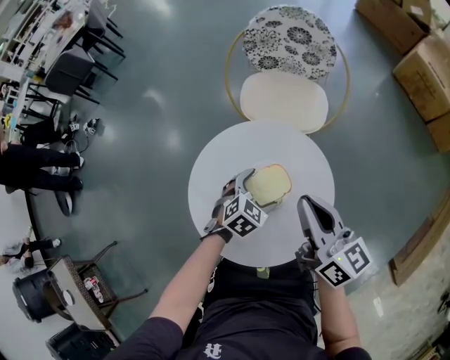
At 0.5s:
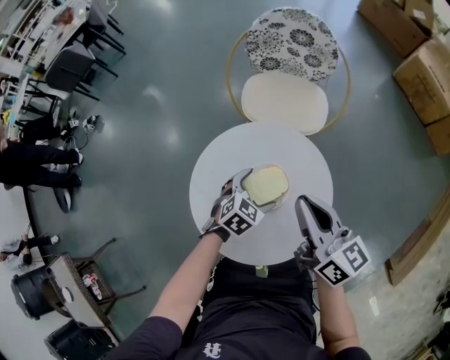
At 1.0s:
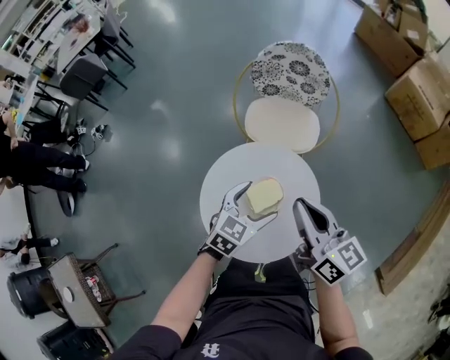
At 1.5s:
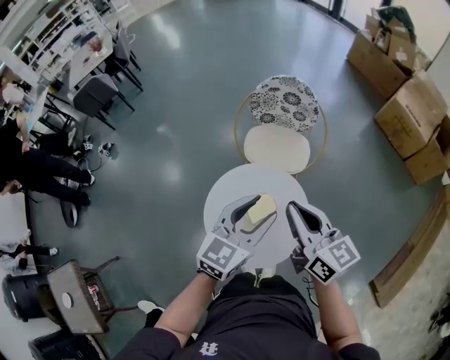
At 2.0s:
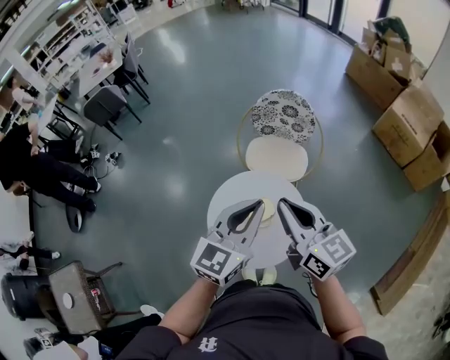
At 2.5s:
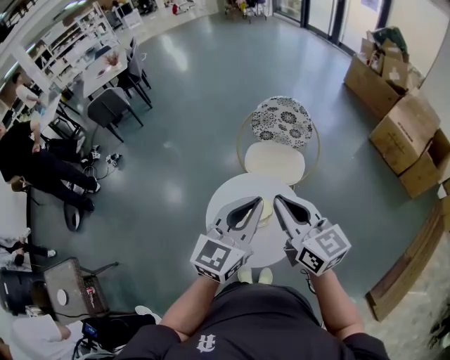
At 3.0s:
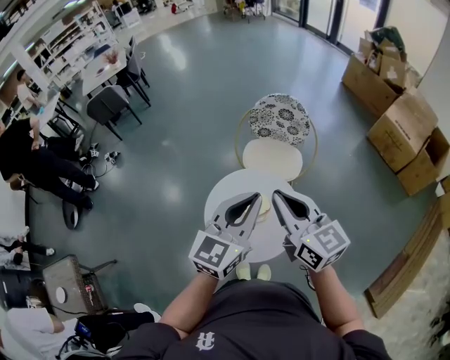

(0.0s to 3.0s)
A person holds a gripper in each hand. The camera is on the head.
0.0s - 1.5s: The right gripper heads upward, covering some 20 cm. Meanwhile the left gripper heads upward, covering approximately 40 cm, angles its fingers upward, by about 40 degrees, and closes its fingers.
1.5s - 3.0s: Both grippers move upward and backward, approximately 10 cm. The left gripper closes.

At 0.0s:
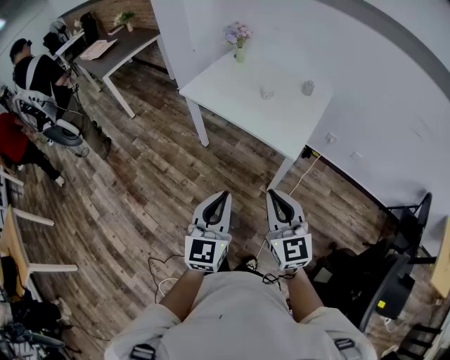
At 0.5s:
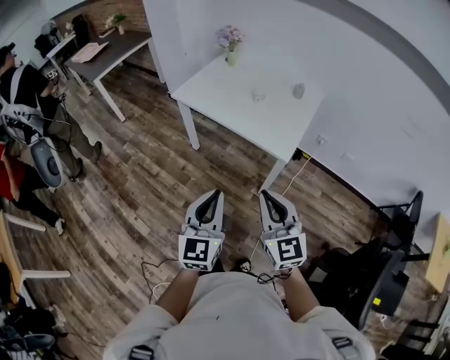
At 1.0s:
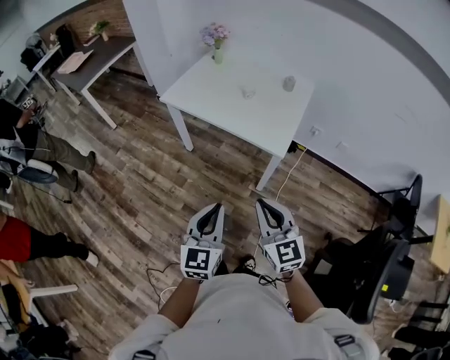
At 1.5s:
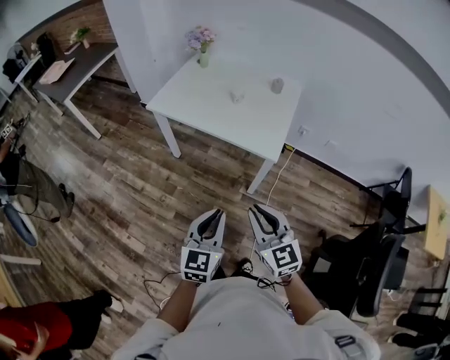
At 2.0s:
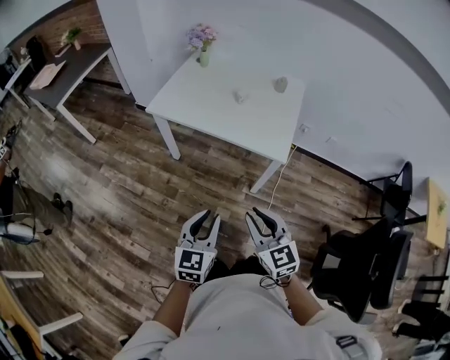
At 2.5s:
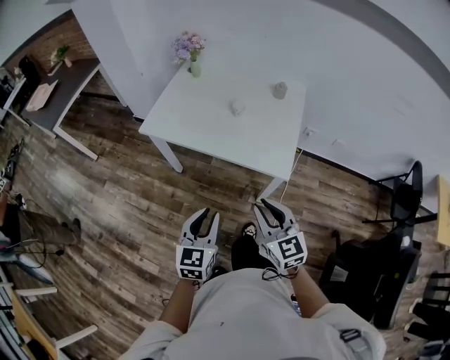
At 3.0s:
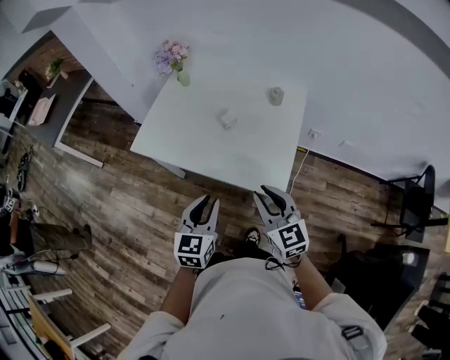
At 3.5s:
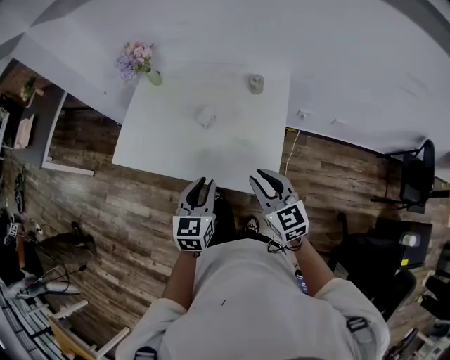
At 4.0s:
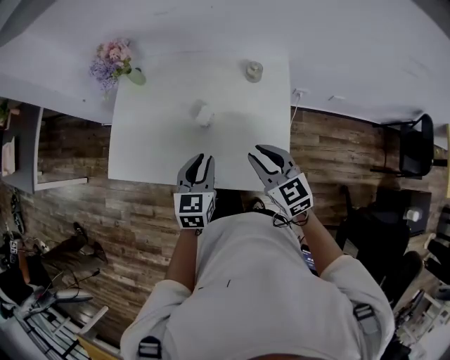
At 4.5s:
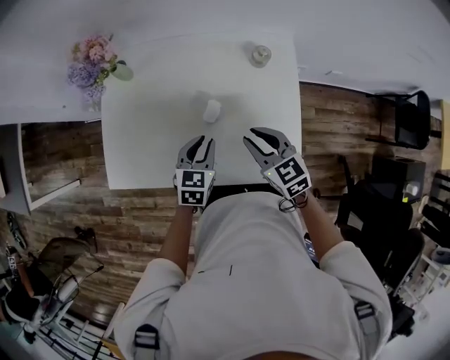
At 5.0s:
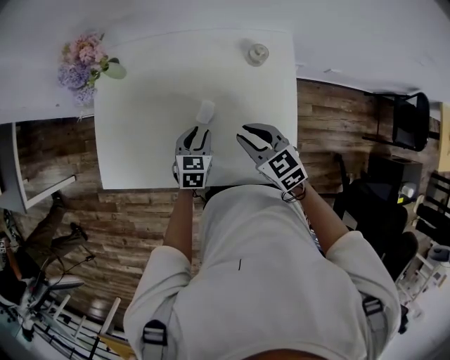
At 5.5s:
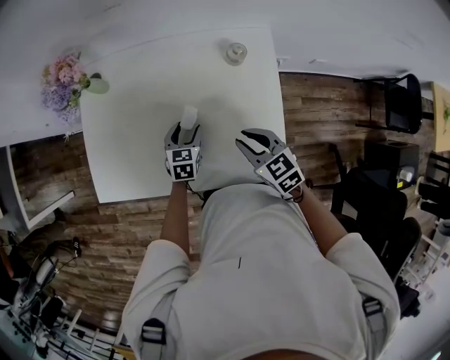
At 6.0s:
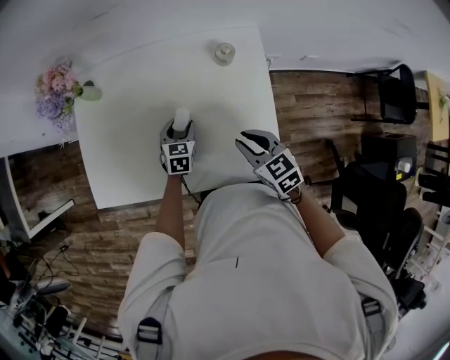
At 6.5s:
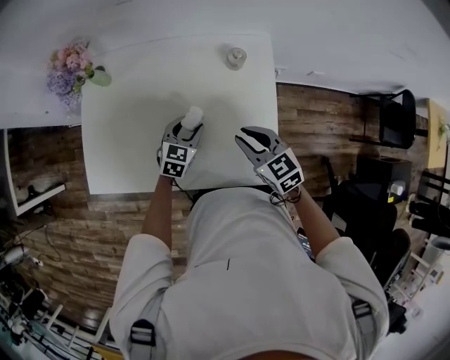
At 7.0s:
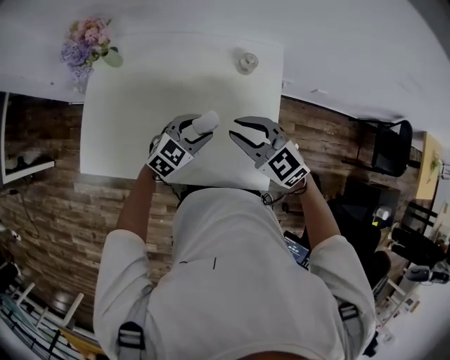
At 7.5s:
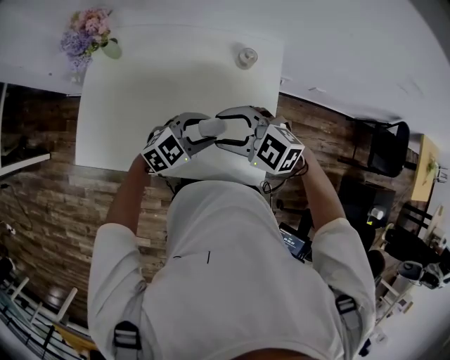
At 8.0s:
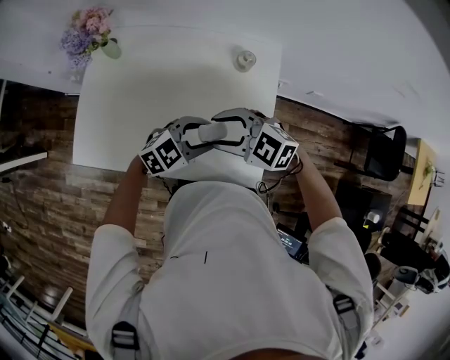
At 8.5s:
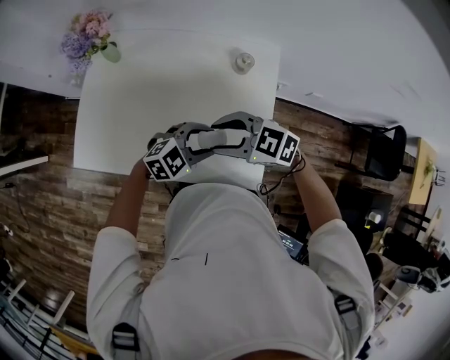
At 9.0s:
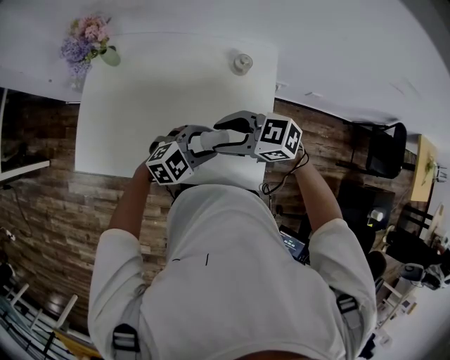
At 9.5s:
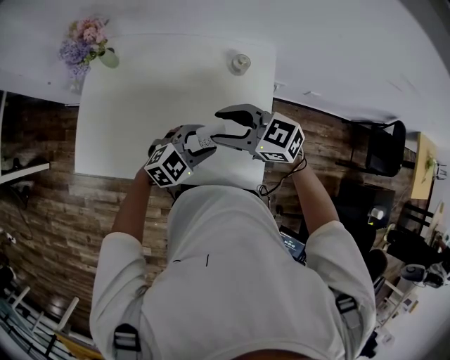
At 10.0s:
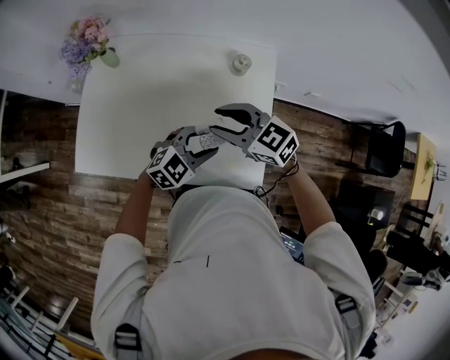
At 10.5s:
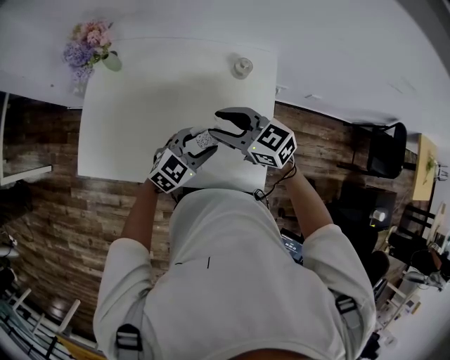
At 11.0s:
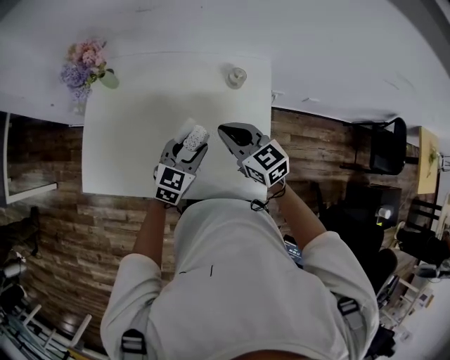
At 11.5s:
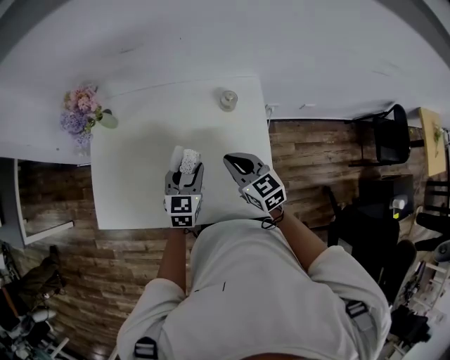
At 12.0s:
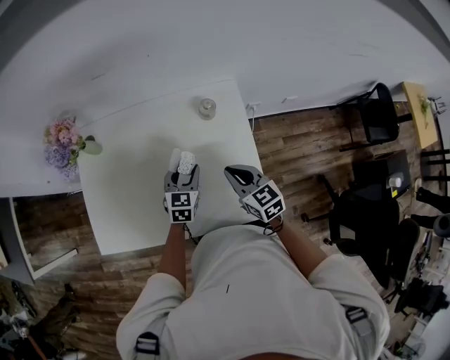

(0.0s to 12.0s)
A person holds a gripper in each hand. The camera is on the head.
0.0s - 2.0s: The left gripper moves to the left, downward and forward, approximately 15 cm, and turns by about 20 degrees; the right gripper goes some 15 cm to the left and downward.
2.0s - 4.0s: Both grippers are carried forward, some 50 cm.
4.0s - 6.0s: The right gripper heads downward and forward, covering about 10 cm; the left gripper heads downward and forward, covering some 25 cm, and opens.
6.0s - 8.0s: The left gripper goes about 15 cm upward, and turns by some 50 degrees. The right gripper moves some 10 cm, rotates roughly 60 degrees, and opens its fingers.
8.0s - 10.0s: The right gripper turns by some 20 degrees.
10.0s - 12.0s: The right gripper changes place by some 10 cm, changes its angle by about 40 degrees, and closes its fingers, while the left gripper changes place by some 15 cm, and turns by about 40 degrees.

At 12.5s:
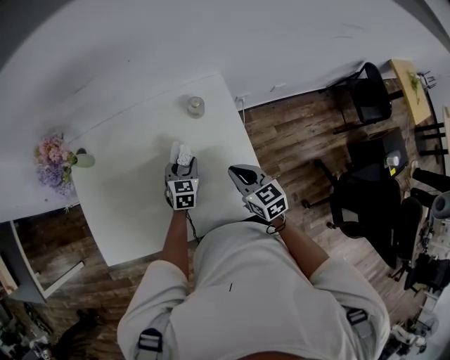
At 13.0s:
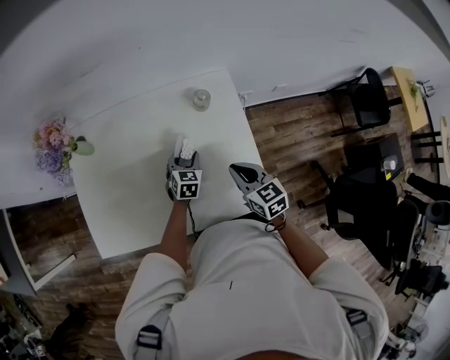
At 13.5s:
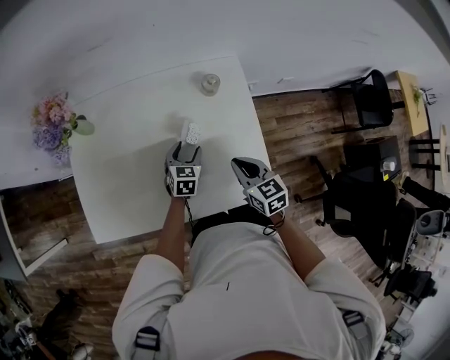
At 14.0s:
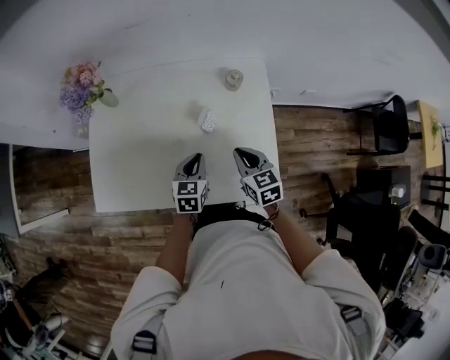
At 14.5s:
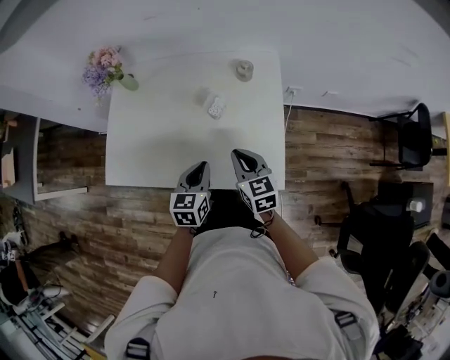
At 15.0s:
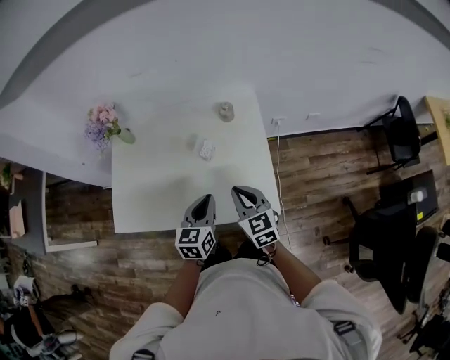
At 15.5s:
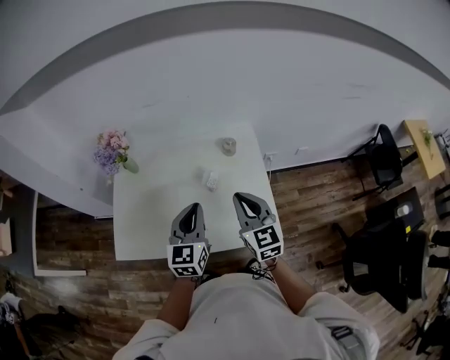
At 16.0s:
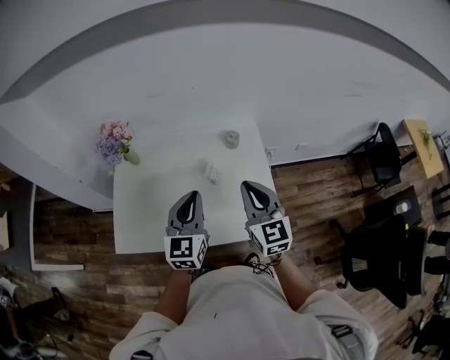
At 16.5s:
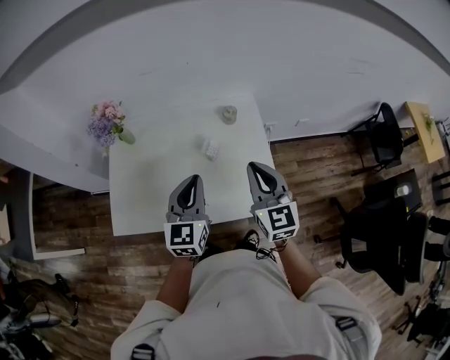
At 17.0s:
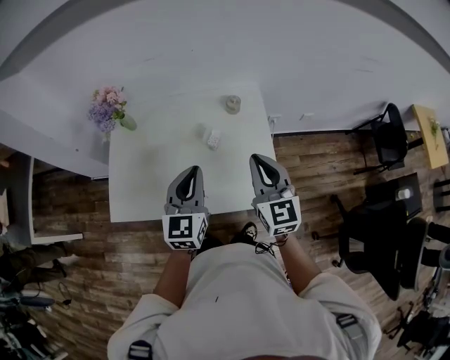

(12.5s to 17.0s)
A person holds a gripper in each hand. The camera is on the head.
12.5s - 14.5s: The right gripper moves backward and to the left, some 10 cm; the left gripper travels backward and upward by some 25 cm, swivels some 20 degrees, and closes.
14.5s - 17.0s: Both grippers travel together upward, approximately 20 cm. The left gripper turns by roughly 30 degrees. Meanwhile the right gripper rotates about 30 degrees.

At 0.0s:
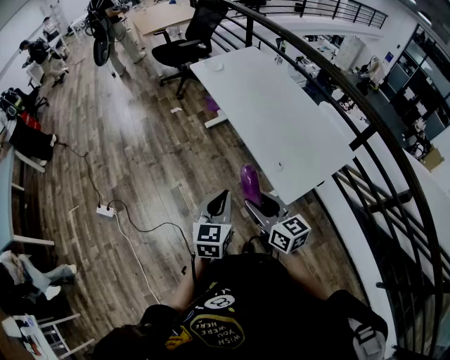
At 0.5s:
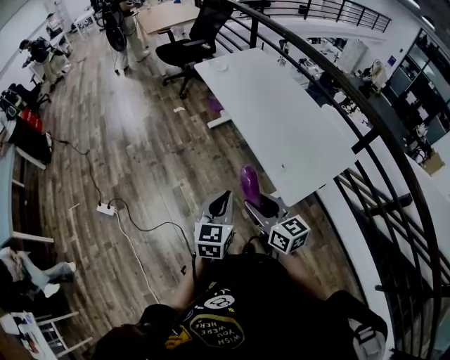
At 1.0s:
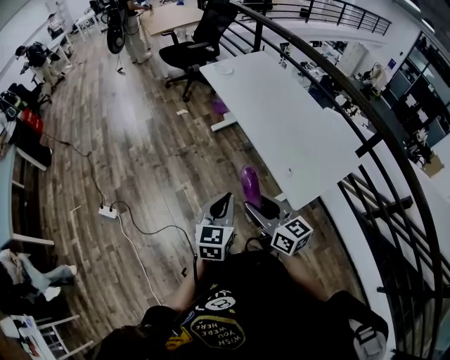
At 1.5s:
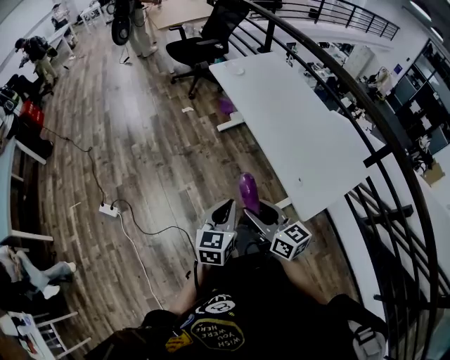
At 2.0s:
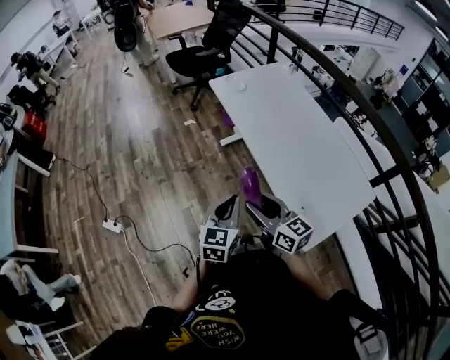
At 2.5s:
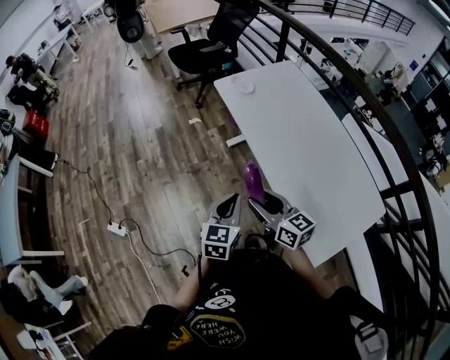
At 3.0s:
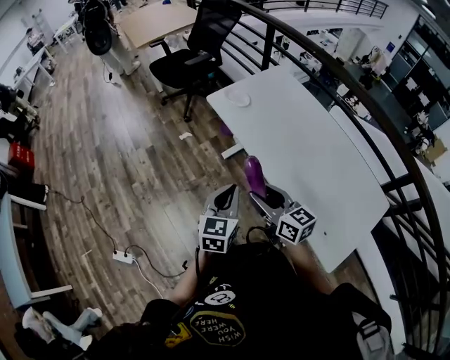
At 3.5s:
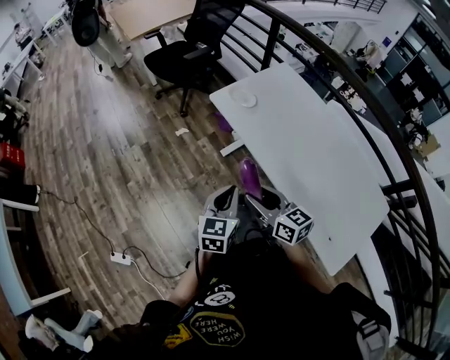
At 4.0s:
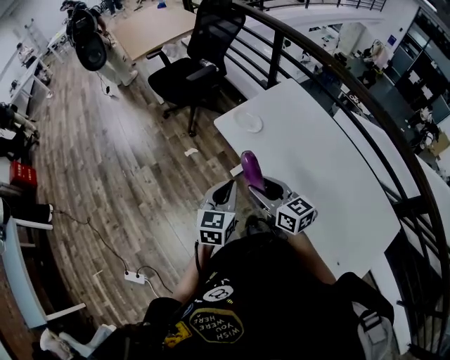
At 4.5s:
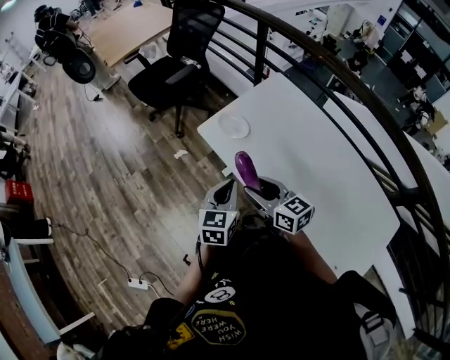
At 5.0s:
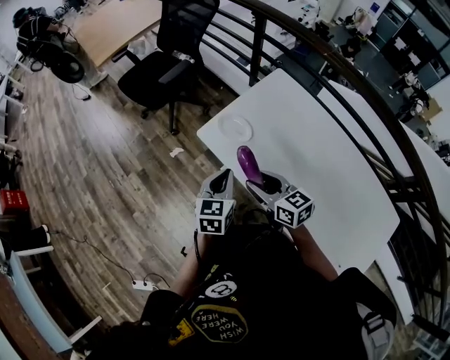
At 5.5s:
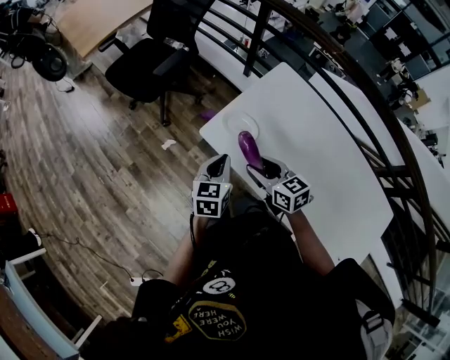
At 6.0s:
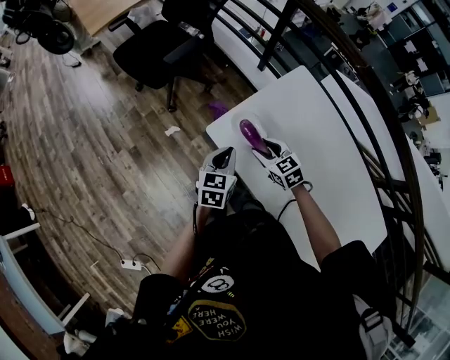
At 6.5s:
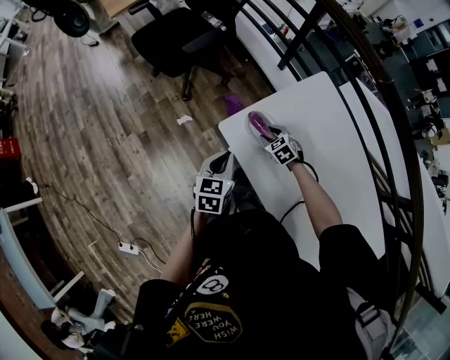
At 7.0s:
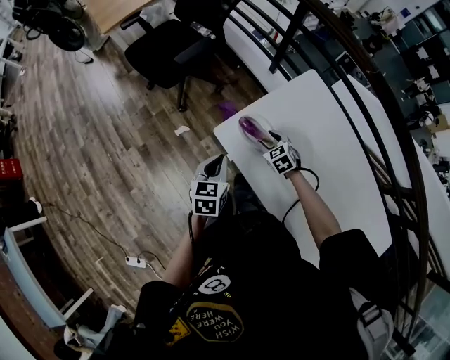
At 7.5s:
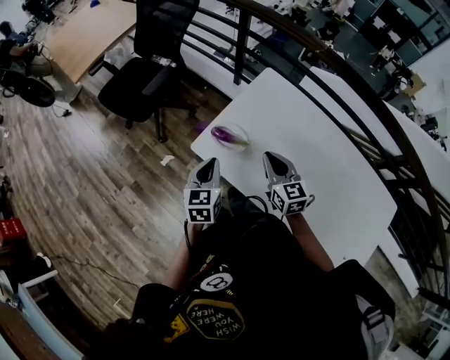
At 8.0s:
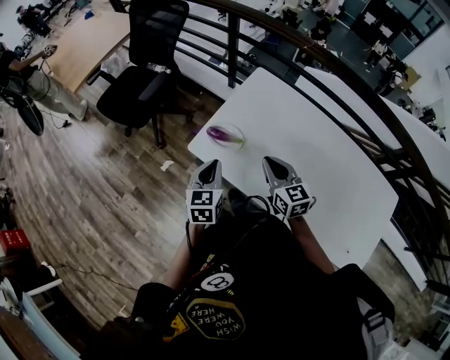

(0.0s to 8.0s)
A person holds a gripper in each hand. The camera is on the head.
0.0s - 2.0s: The two grippers go some 20 cm forward.
2.0s - 4.0s: Both grippers are carried forward, roughly 50 cm.
4.0s - 6.0s: The right gripper shifts some 35 cm forward and downward, and rotates approximately 30 degrees, while the left gripper shifts some 30 cm forward.
6.0s - 8.0s: The left gripper moves upward and backward, some 10 cm, while the right gripper goes approximately 20 cm upward, backward and to the right, rotates about 40 degrees, and closes its fingers.
